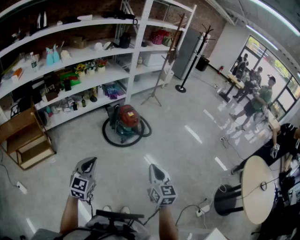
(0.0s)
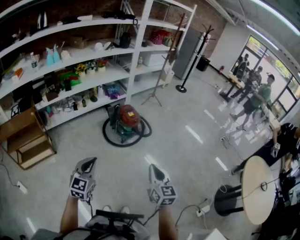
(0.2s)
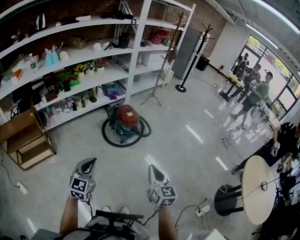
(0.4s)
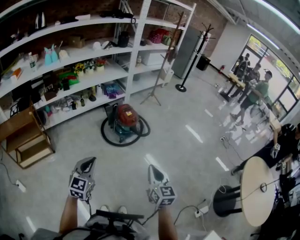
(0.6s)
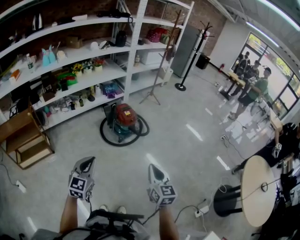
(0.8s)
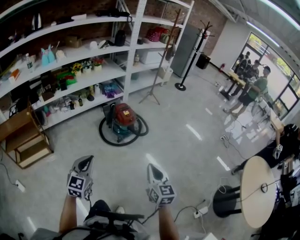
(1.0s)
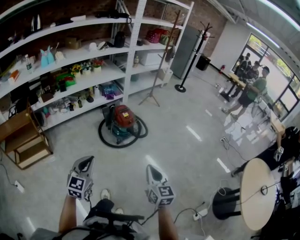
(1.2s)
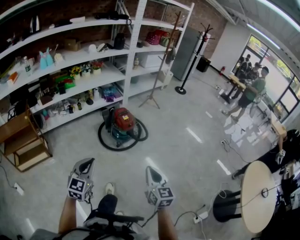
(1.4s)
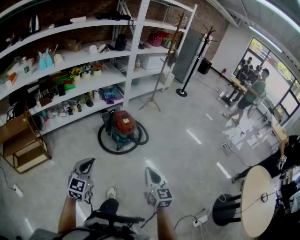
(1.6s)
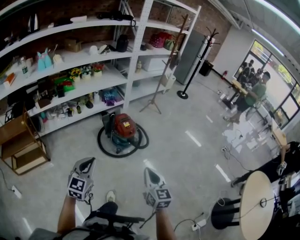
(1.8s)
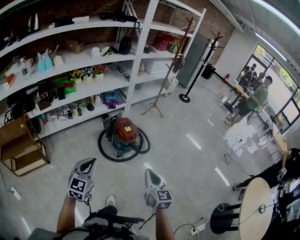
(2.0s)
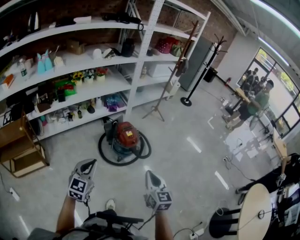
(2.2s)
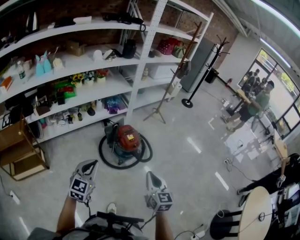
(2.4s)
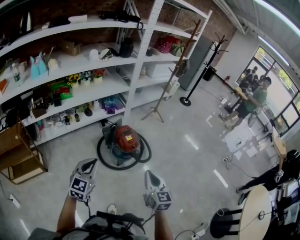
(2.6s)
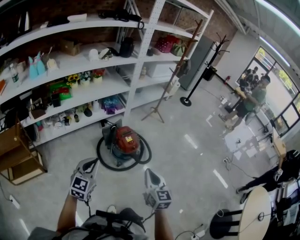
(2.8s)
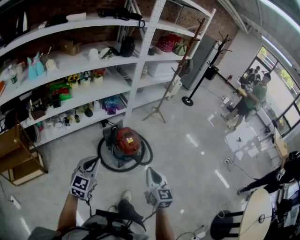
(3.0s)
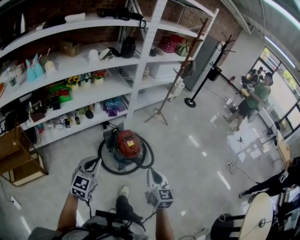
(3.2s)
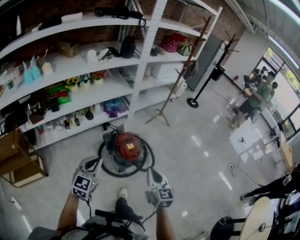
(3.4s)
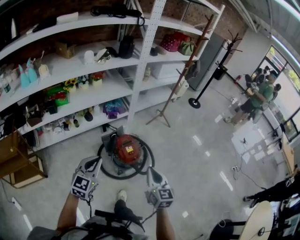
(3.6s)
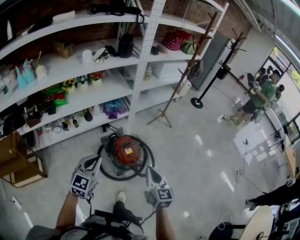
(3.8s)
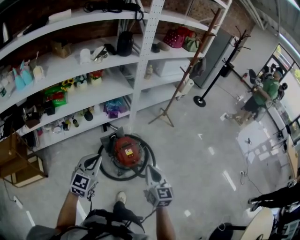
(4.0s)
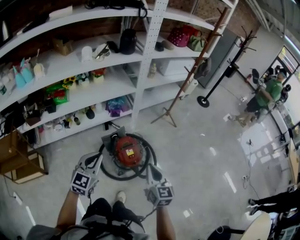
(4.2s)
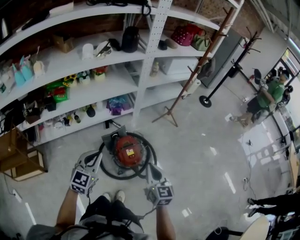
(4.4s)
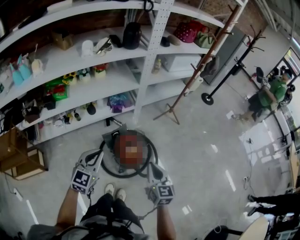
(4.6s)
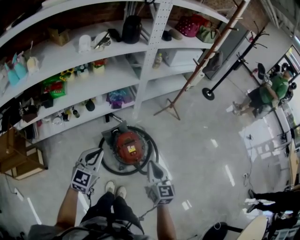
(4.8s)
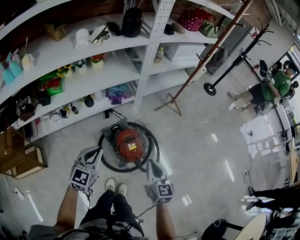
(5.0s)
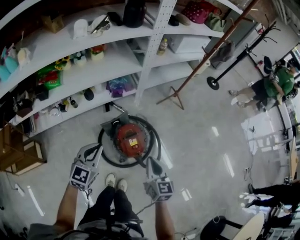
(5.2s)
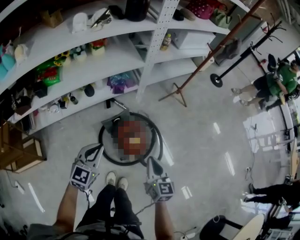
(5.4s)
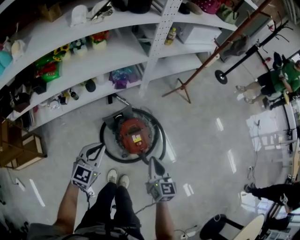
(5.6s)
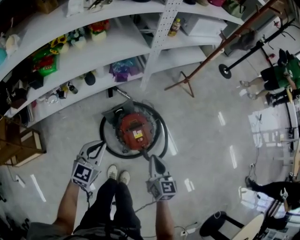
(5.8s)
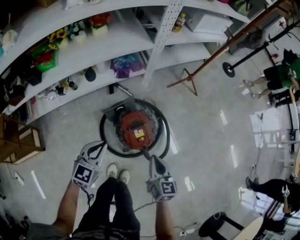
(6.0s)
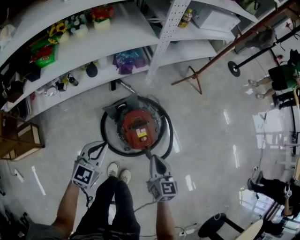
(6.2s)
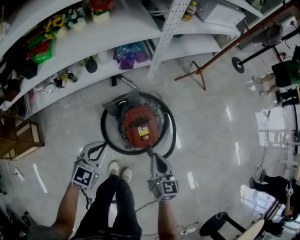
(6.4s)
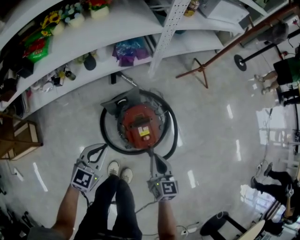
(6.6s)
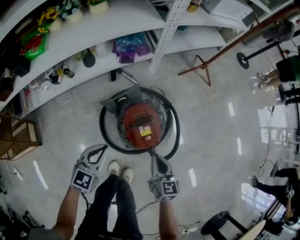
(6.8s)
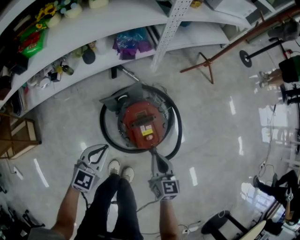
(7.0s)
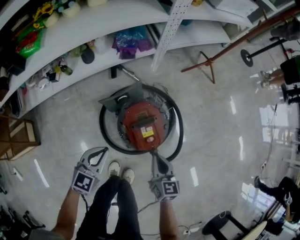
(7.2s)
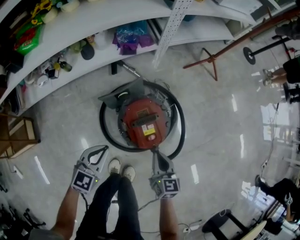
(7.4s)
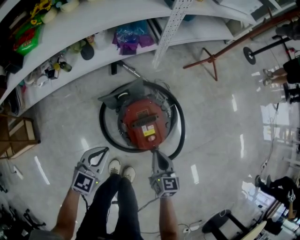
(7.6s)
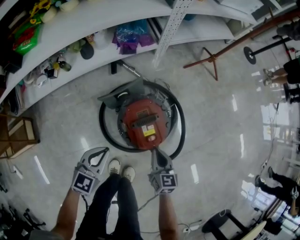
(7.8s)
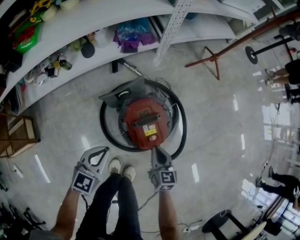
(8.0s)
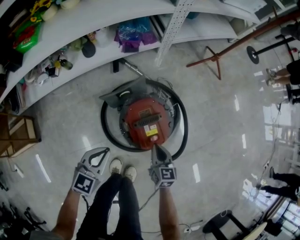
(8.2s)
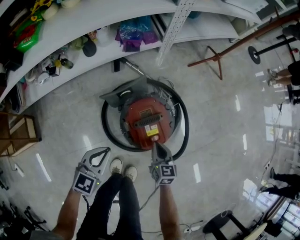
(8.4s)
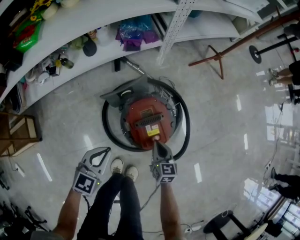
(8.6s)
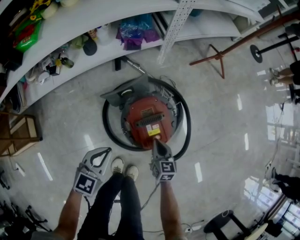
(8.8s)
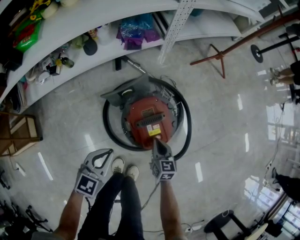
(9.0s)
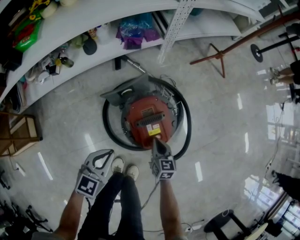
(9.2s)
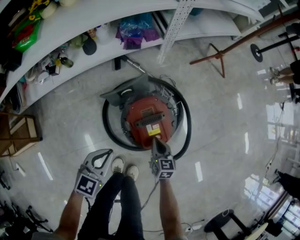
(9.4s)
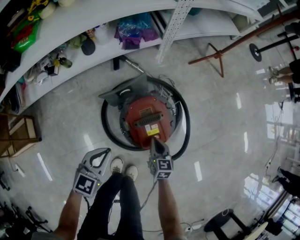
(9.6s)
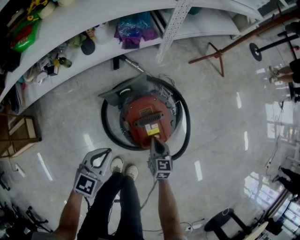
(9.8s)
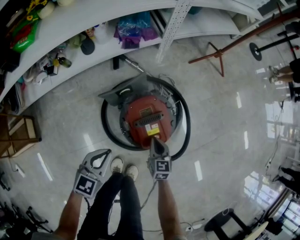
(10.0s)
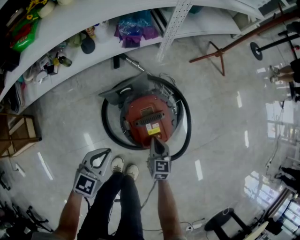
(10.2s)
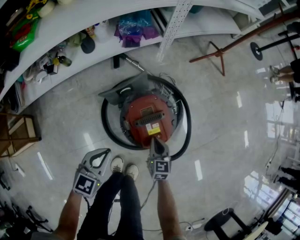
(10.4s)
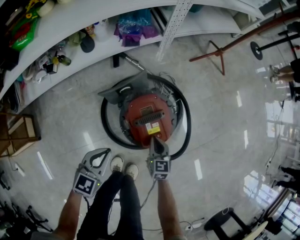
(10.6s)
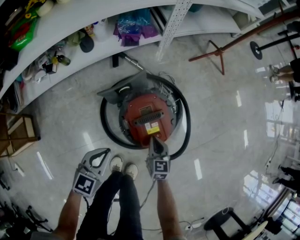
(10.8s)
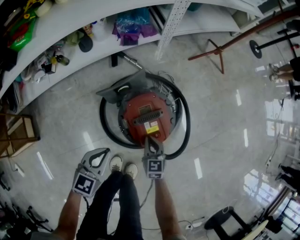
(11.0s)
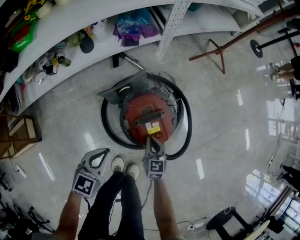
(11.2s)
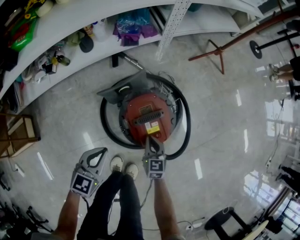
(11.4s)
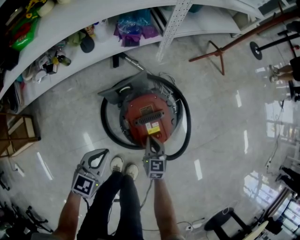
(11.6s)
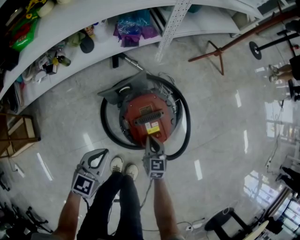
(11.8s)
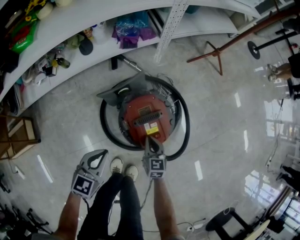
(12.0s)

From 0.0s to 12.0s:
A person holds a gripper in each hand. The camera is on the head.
From 0.0s to 1.6s: Both grippers travel together forward and to the right, about 10 cm.
From 1.6s to 3.0s: Both grippers travel together forward, roughly 30 cm.
From 3.0s to 4.4s: Both grippers travel together forward, about 25 cm.
From 4.4s to 6.0s: The two grippers go some 25 cm downward and forward.
From 6.0s to 7.6s: Both grippers move downward, roughly 20 cm.
From 7.6s to 9.0s: The right gripper heads downward, covering approximately 10 cm.
From 9.0s to 12.0s: The grippers make only small movements.

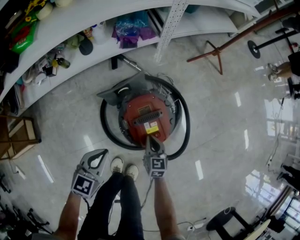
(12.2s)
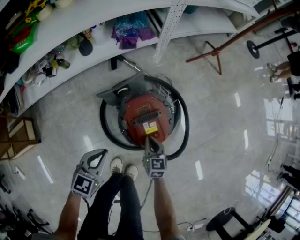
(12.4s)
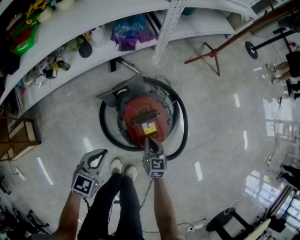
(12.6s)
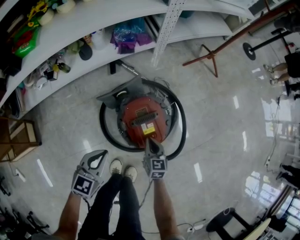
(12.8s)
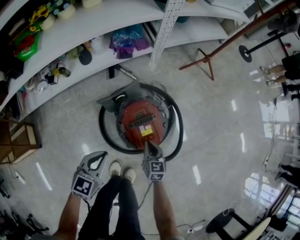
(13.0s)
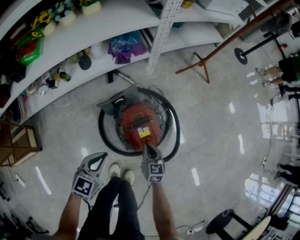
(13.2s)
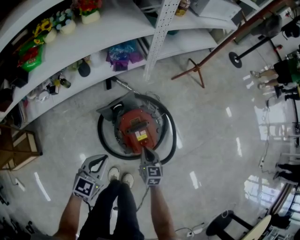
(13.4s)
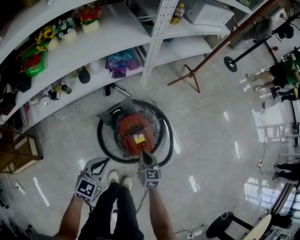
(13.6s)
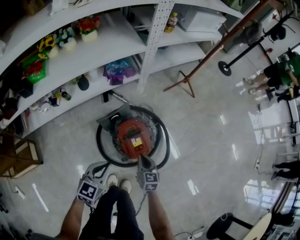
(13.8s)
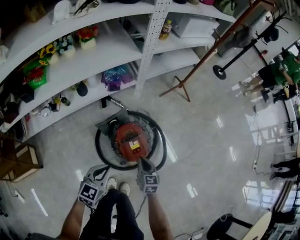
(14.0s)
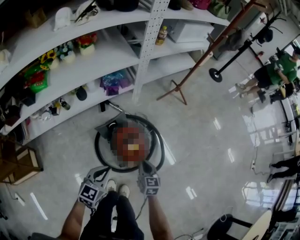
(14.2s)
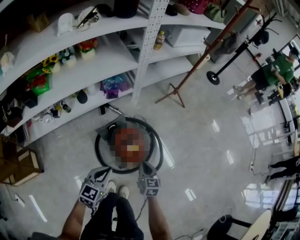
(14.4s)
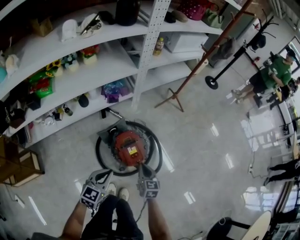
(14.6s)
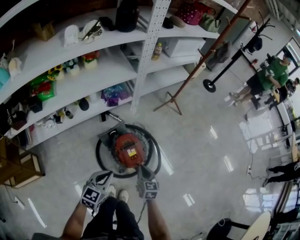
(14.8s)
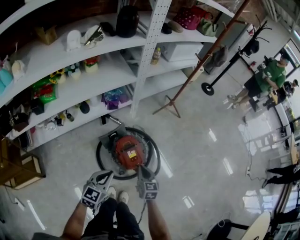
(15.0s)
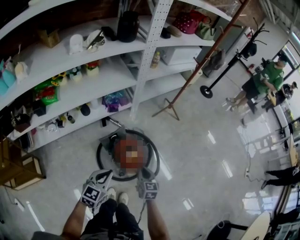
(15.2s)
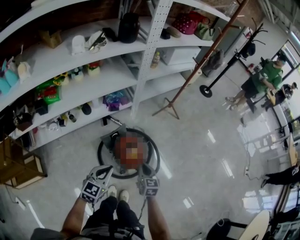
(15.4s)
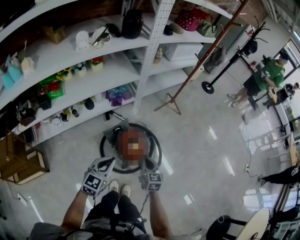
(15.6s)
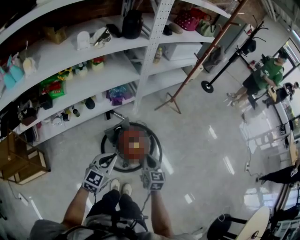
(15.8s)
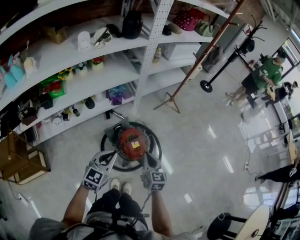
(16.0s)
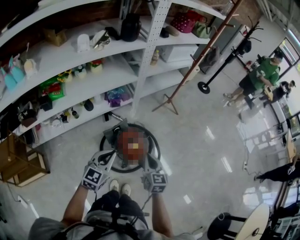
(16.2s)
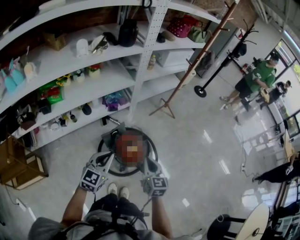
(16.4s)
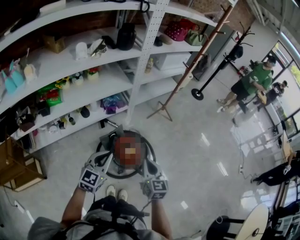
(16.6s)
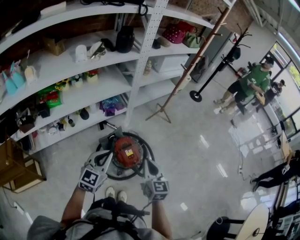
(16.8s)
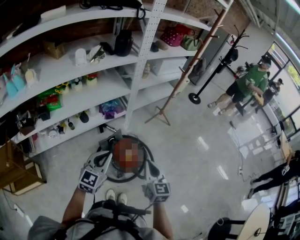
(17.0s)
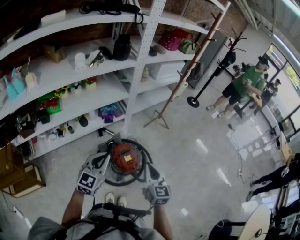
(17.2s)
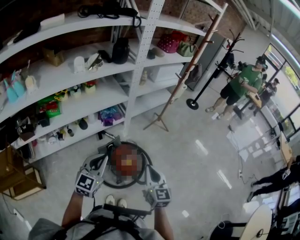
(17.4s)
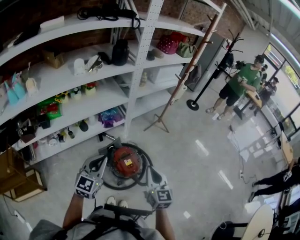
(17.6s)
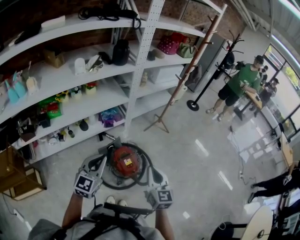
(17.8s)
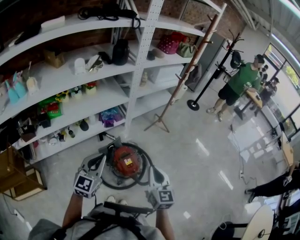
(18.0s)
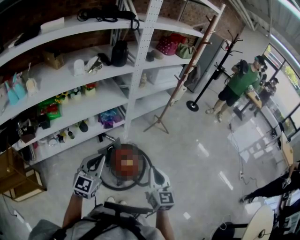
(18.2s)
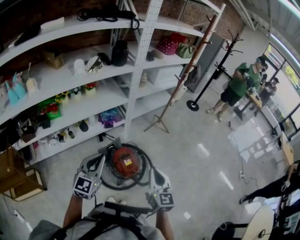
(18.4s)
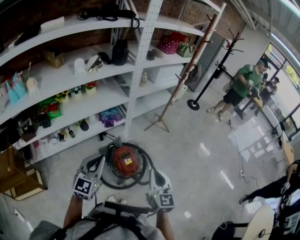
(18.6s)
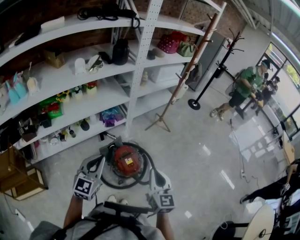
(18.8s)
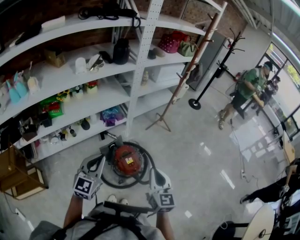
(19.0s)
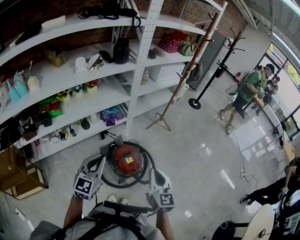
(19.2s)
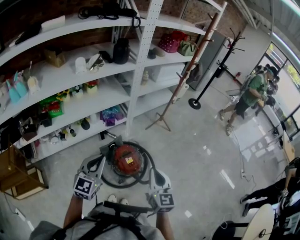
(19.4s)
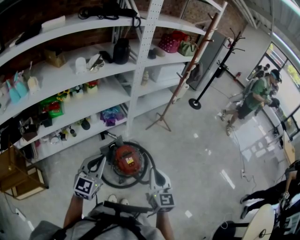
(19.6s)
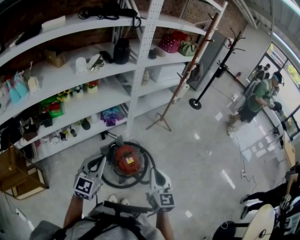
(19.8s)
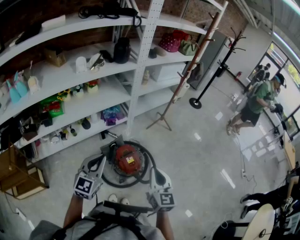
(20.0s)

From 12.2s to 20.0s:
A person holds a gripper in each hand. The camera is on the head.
From 12.2s to 13.8s: Both grippers move upward, approximately 15 cm.
From 13.8s to 15.4s: The two grippers go about 20 cm upward.
From 15.4s to 16.8s: The left gripper travels upward by roughly 10 cm. Meanwhile the right gripper is displaced upward by roughly 20 cm.
From 16.8s to 18.4s: The grippers both shift upward by roughly 5 cm.
From 18.4s to 20.0s: Neither gripper changes place.

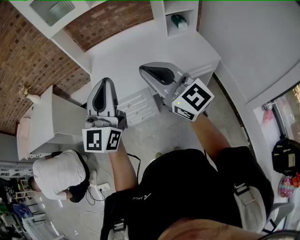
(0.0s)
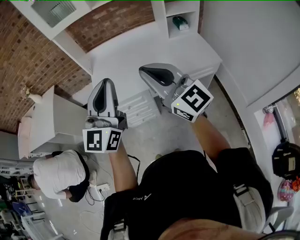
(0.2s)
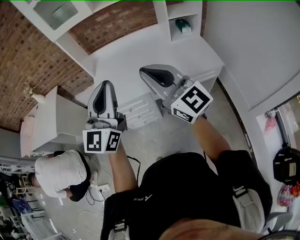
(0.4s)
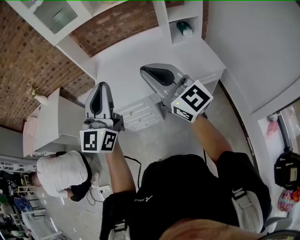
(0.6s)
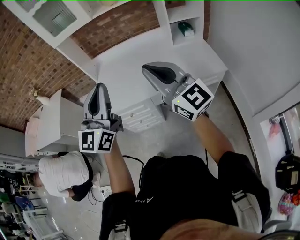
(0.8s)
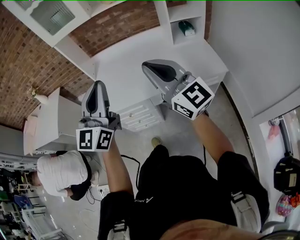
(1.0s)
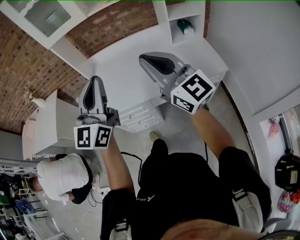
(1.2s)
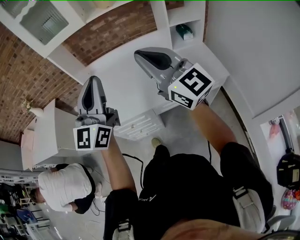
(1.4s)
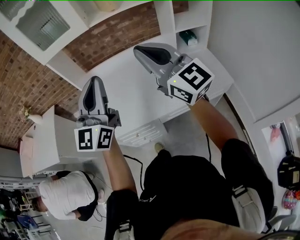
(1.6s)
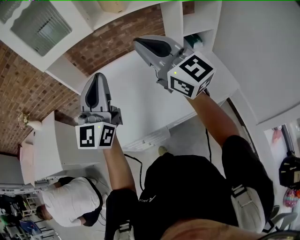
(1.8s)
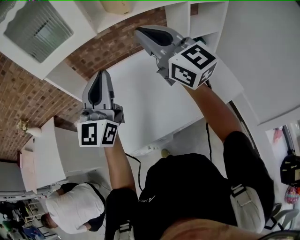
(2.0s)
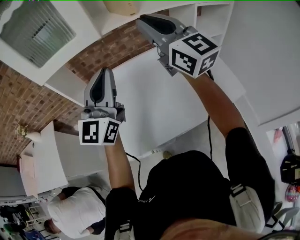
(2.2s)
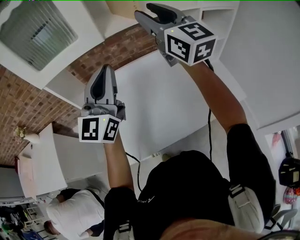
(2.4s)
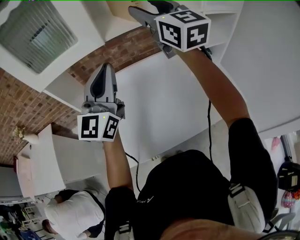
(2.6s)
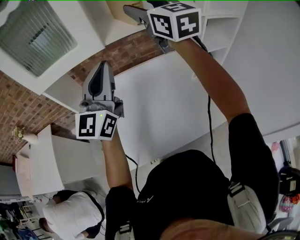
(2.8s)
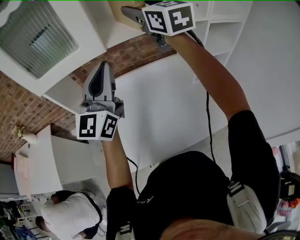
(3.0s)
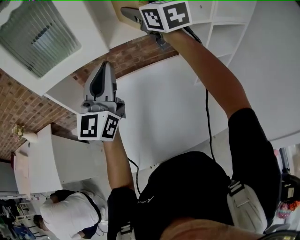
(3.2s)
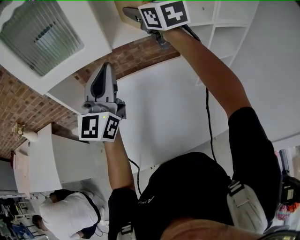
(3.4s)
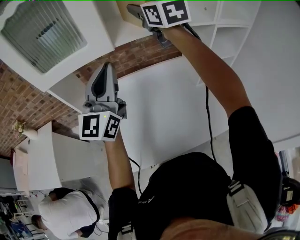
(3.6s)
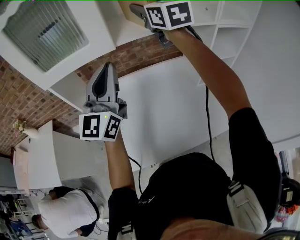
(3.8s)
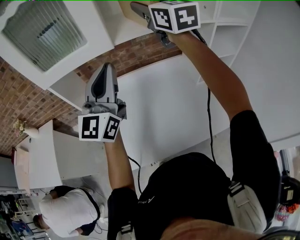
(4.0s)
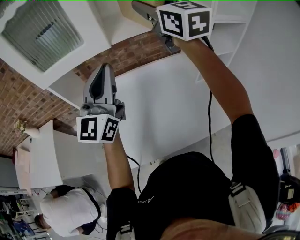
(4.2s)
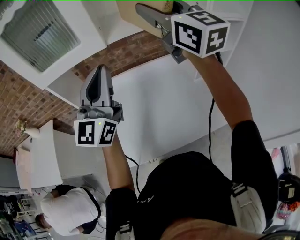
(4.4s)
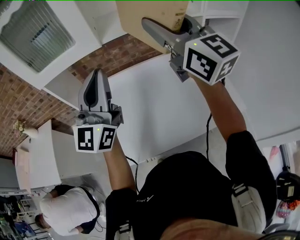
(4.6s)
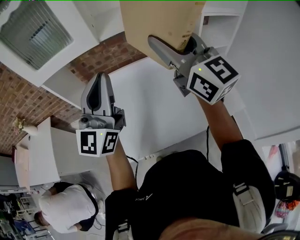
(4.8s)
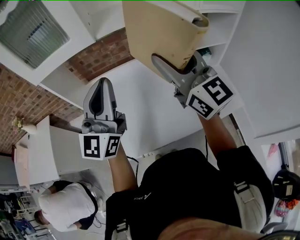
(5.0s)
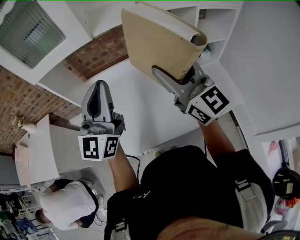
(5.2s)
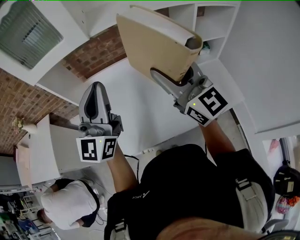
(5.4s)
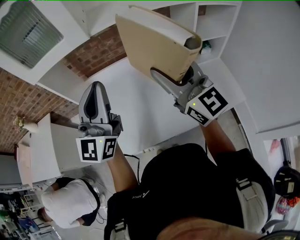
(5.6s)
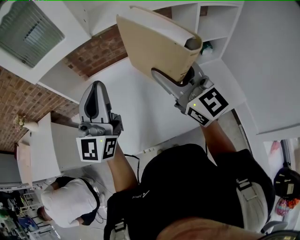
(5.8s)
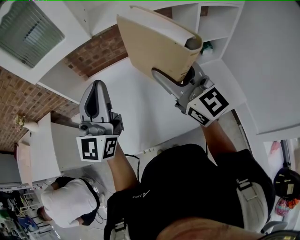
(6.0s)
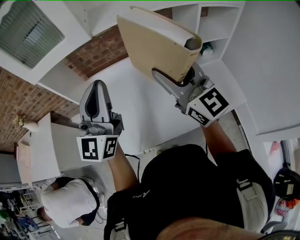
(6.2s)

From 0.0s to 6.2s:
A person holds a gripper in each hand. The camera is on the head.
From 0.0s to 1.6s: Both grippers travel together forward, about 25 cm.
From 1.6s to 3.2s: Both grippers move forward, approximately 35 cm. The right gripper swivels about 20 degrees, and opens up.
From 3.2s to 4.6s: The left gripper is displaced backward by about 5 cm; the right gripper shifts about 15 cm backward.
From 4.6s to 6.2s: The left gripper ends up some 5 cm from where it was. Meanwhile the right gripper goes about 15 cm downward and backward.
